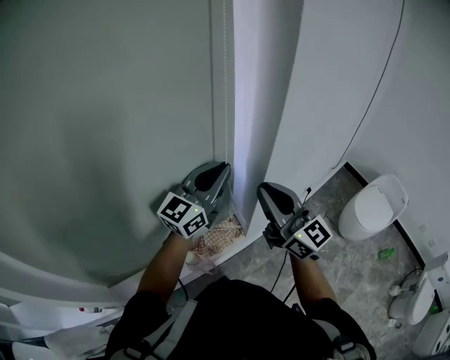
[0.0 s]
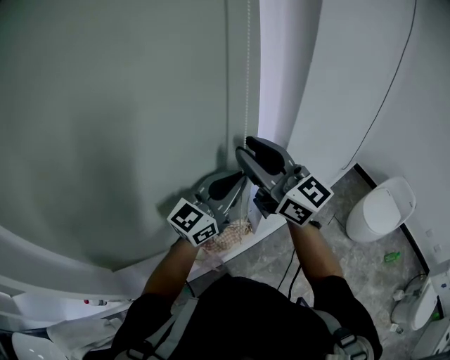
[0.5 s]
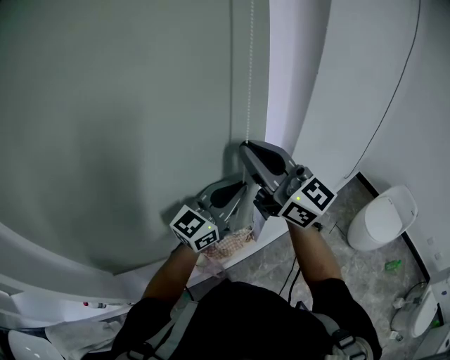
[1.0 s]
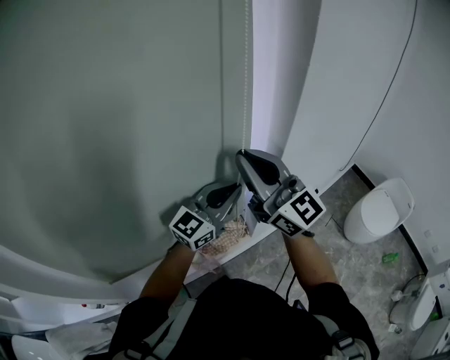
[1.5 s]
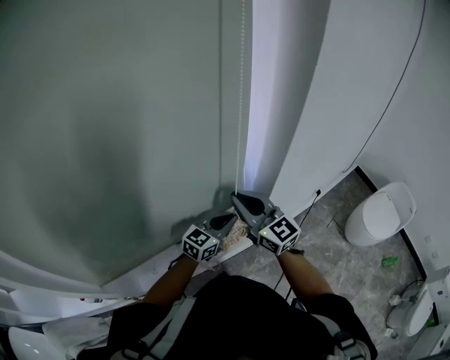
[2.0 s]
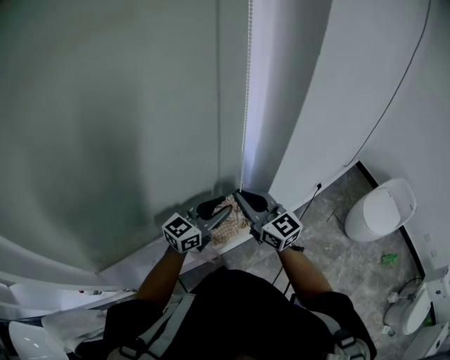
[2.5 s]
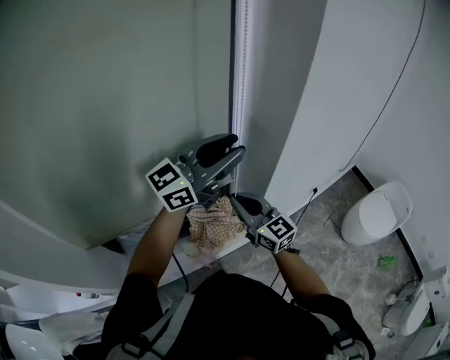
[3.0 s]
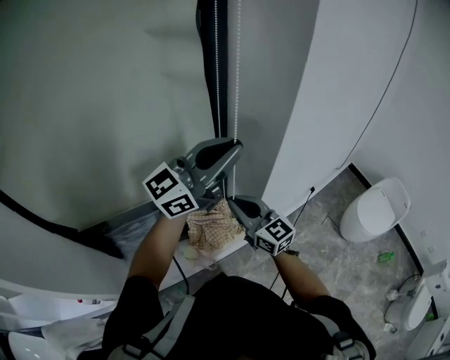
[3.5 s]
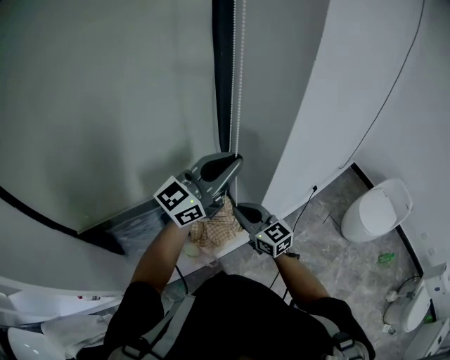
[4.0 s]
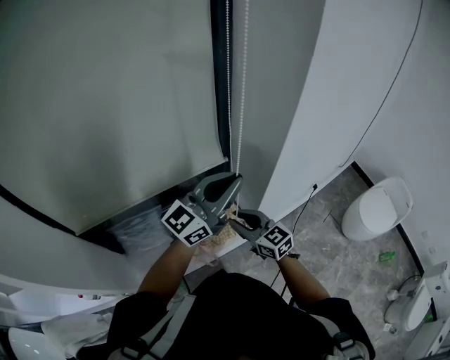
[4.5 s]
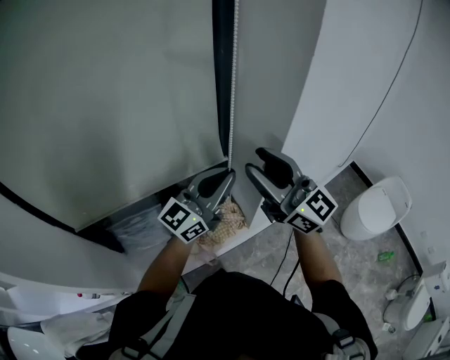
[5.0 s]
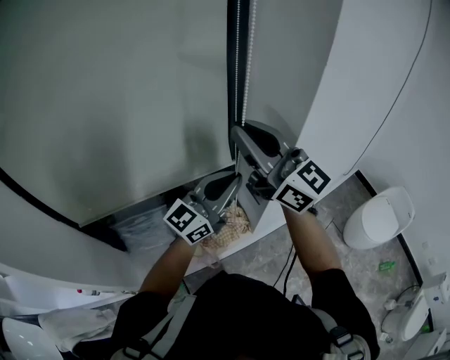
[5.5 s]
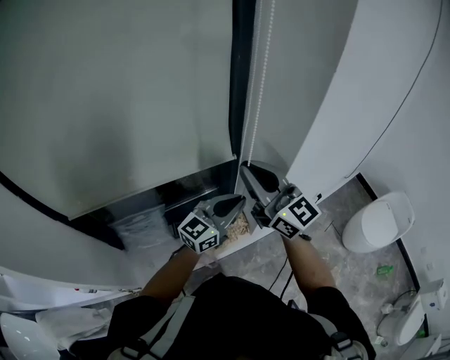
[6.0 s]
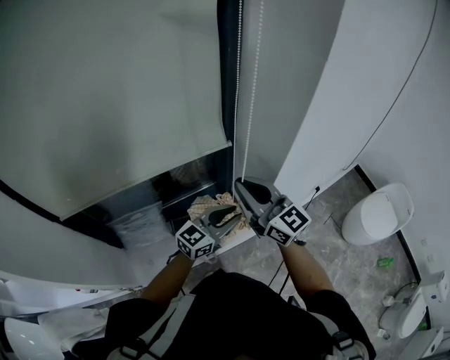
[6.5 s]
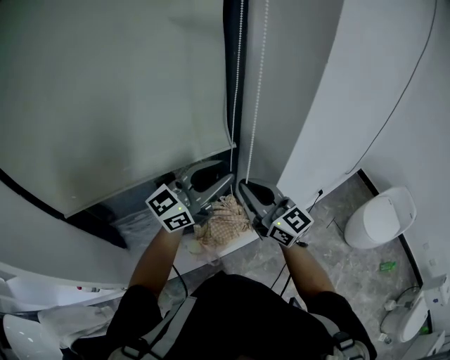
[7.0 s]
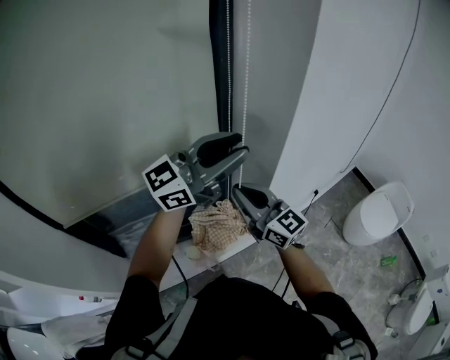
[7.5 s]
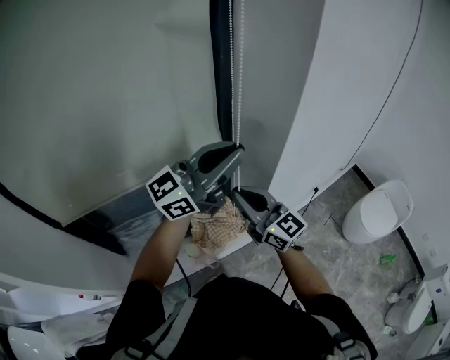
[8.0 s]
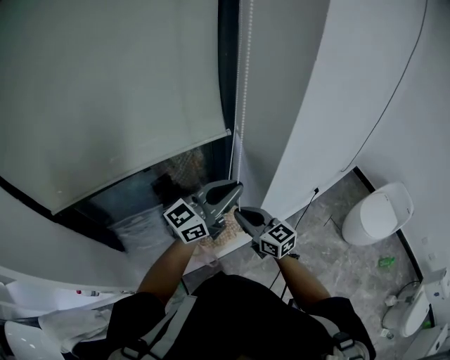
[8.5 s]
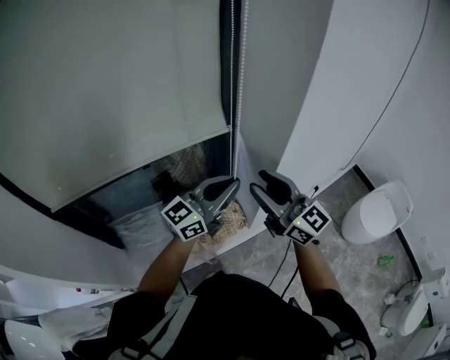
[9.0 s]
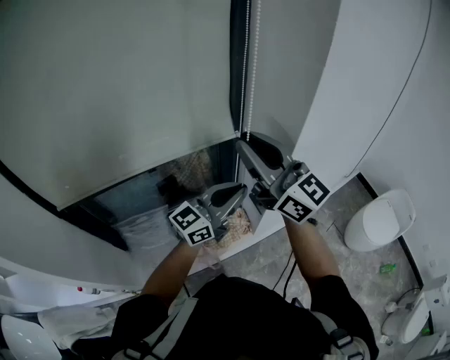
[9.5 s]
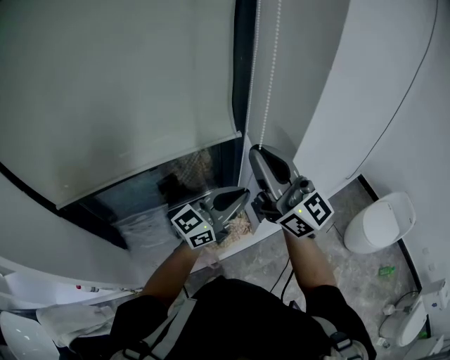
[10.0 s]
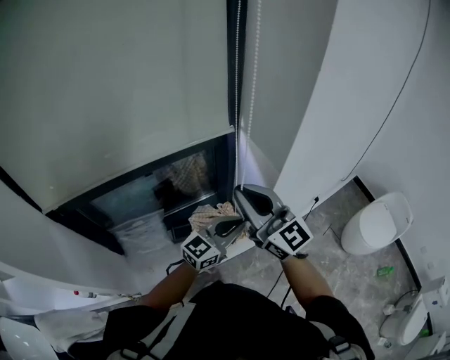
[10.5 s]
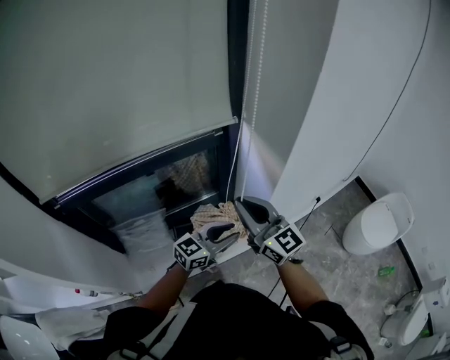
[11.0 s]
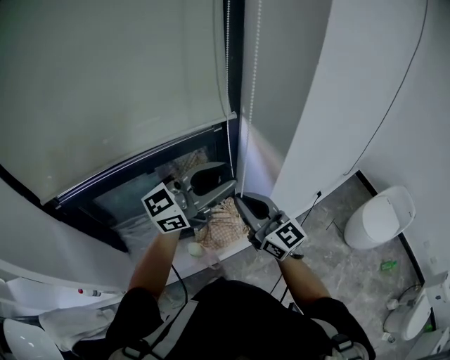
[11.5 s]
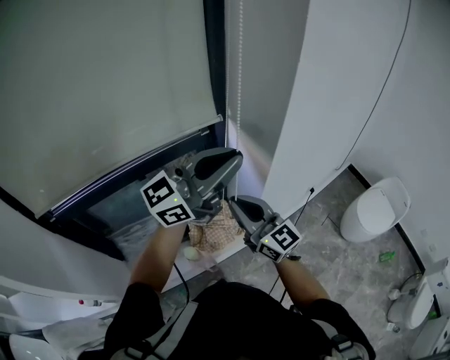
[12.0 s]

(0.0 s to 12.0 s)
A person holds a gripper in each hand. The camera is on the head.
0.0 s - 2.0 s: The right gripper heads downward and to the left, covering some 15 cm, and opens and closes again, while the left gripper heads downward, covering roughly 25 cm, and swivels about 30 degrees.
2.0 s - 4.0 s: The right gripper heads downward, covering about 10 cm, while the left gripper is displaced upward by about 25 cm, angles its fingers upward, by about 30 degrees, and opens and closes again.
4.0 s - 6.0 s: The left gripper is displaced downward by approximately 15 cm; the right gripper heads upward, covering some 20 cm, changes its angle by some 20 degrees, and opens and closes again.
6.0 s - 8.0 s: The right gripper shifts roughly 10 cm downward, while the left gripper shifts about 20 cm upward, swivels about 20 degrees, and opens, then closes again.
8.0 s - 10.0 s: The left gripper shifts some 15 cm downward. Meanwhile the right gripper moves upward, some 15 cm, and opens, then closes again.
10.0 s - 12.0 s: The left gripper moves upward, about 15 cm, and opens, then closes once more, while the right gripper heads downward, covering some 15 cm.

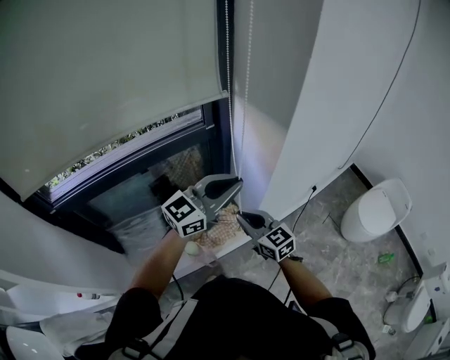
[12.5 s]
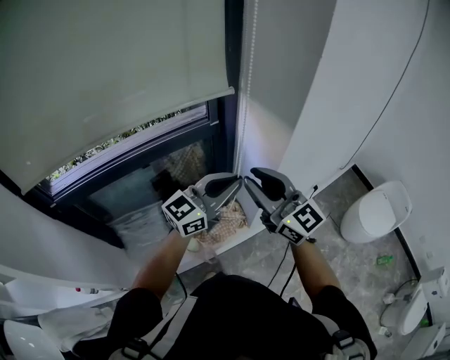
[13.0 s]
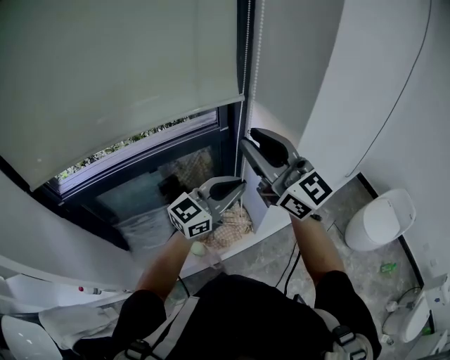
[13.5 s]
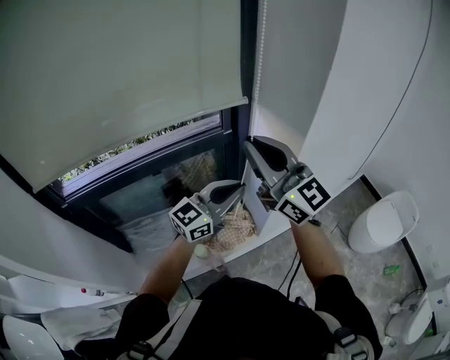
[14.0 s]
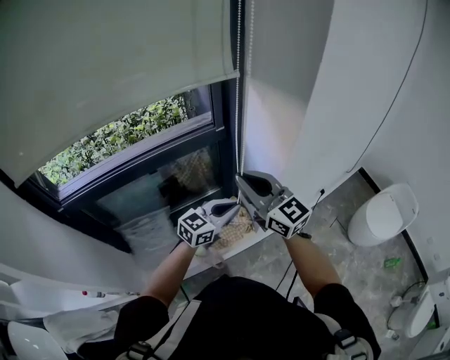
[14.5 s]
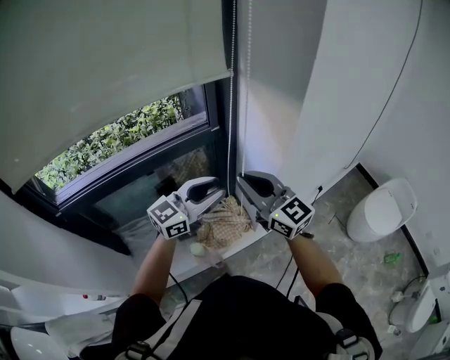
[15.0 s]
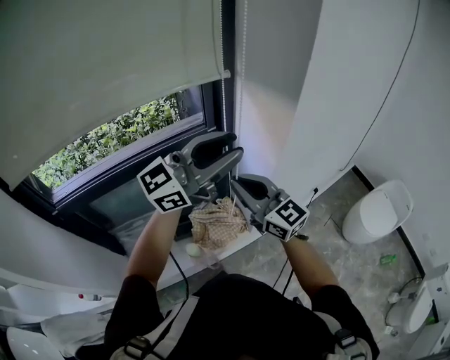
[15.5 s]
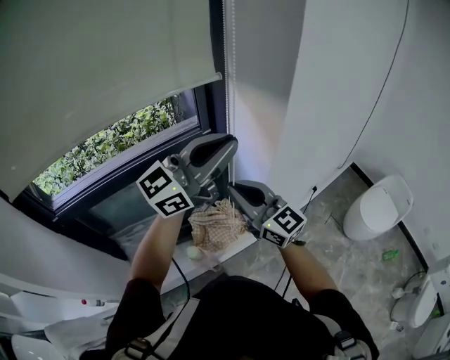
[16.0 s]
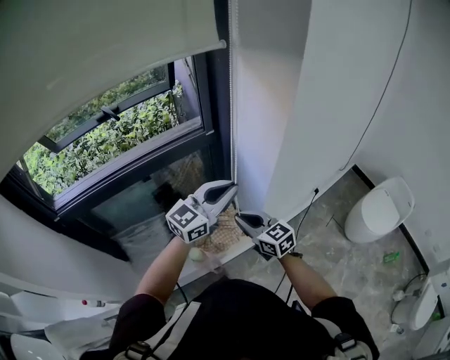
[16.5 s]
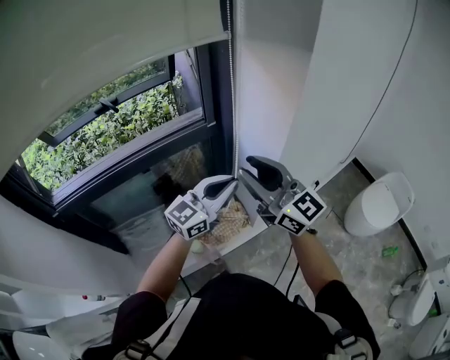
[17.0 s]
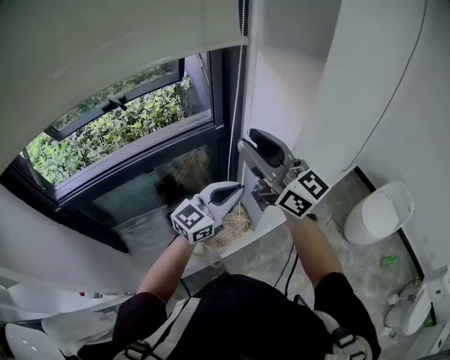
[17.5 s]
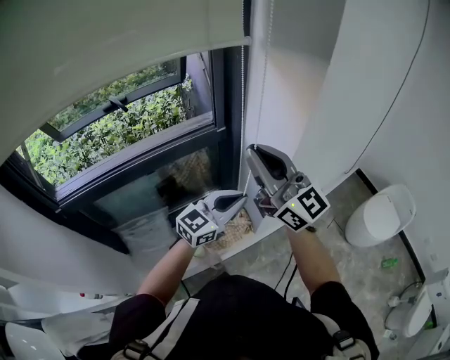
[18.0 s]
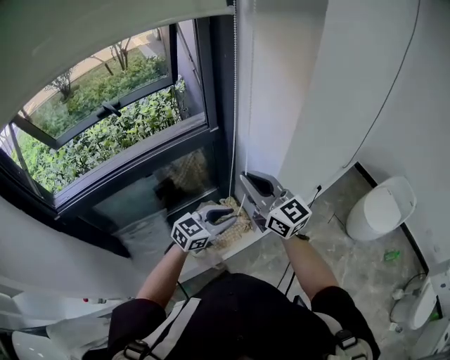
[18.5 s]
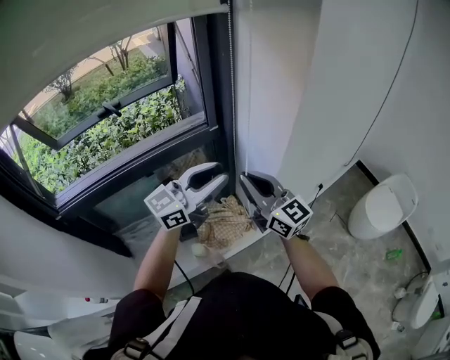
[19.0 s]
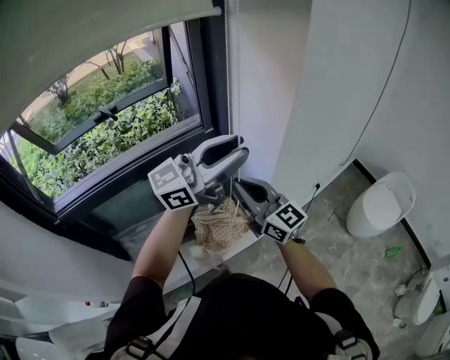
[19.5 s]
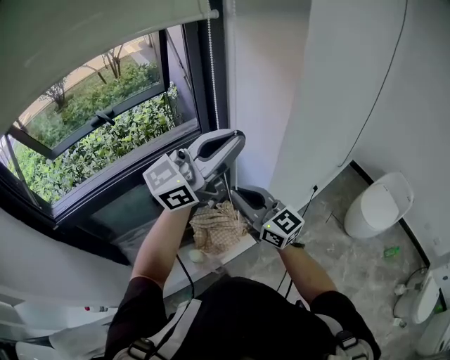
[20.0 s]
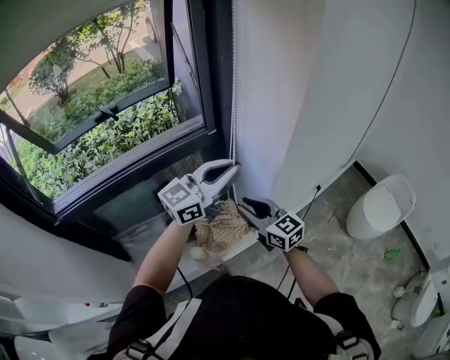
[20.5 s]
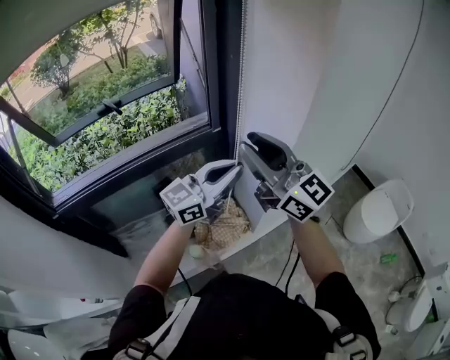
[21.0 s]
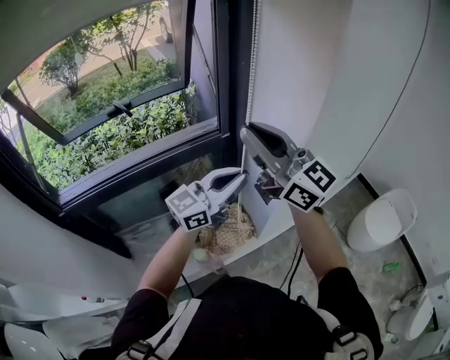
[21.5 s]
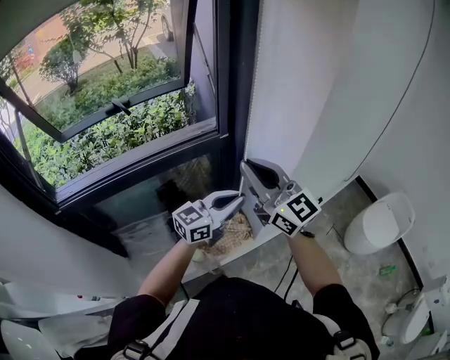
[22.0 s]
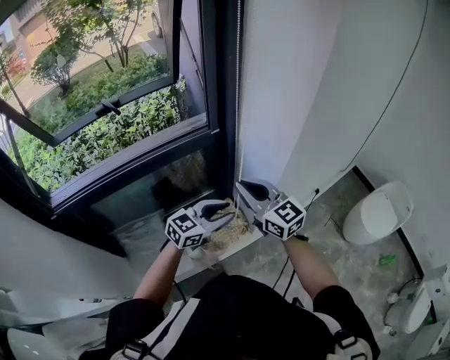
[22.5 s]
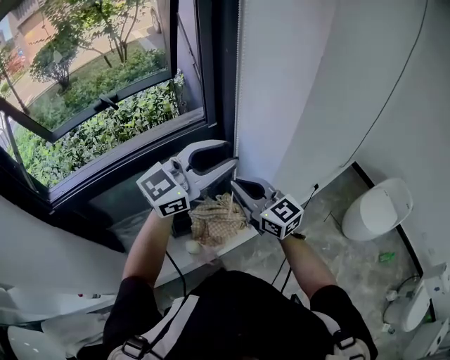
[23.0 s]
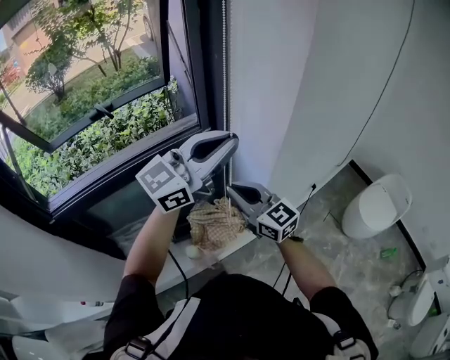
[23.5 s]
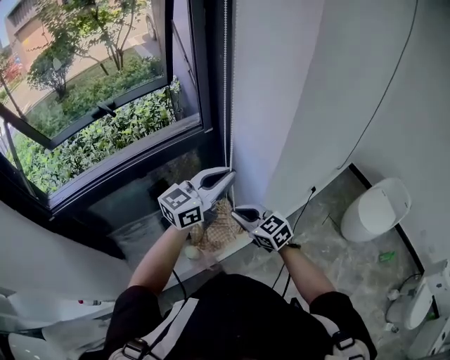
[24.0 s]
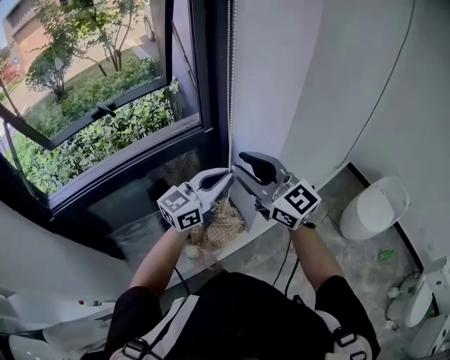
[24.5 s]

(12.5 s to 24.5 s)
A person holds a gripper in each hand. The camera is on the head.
12.5 s - 14.5 s: The right gripper travels upward by some 15 cm, changes its angle by some 20 degrees, and opens, then closes again. Meanwhile the left gripper goes about 15 cm downward.
14.5 s - 16.5 s: The right gripper shifts approximately 20 cm downward, and swivels approximately 30 degrees. The left gripper travels upward by approximately 10 cm, and opens, then closes once more.
16.5 s - 18.5 s: The left gripper heads downward, covering some 15 cm, and changes its angle by roughly 20 degrees. Meanwhile the right gripper shifts approximately 15 cm upward, changes its angle by roughly 30 degrees, and opens, then closes again.
18.5 s - 20.5 s: The right gripper heads downward, covering about 10 cm, and opens, while the left gripper moves upward, approximately 20 cm, and swivels some 30 degrees.
20.5 s - 22.5 s: The right gripper travels upward and back again, approximately 30 cm each way, and closes; the left gripper moves downward, roughly 20 cm, rotates some 20 degrees, and opens up.
22.5 s - 24.5 s: The two grippers go approximately 15 cm upward. The left gripper turns by about 20 degrees, and closes. Meanwhile the right gripper opens its fingers.

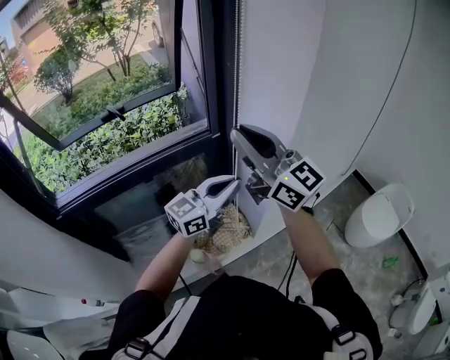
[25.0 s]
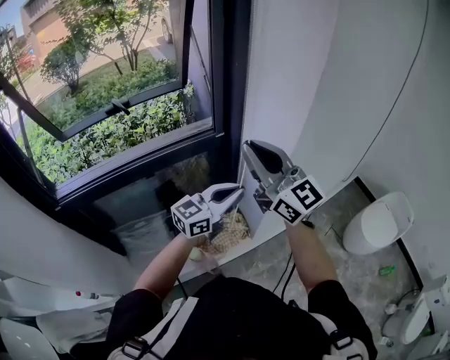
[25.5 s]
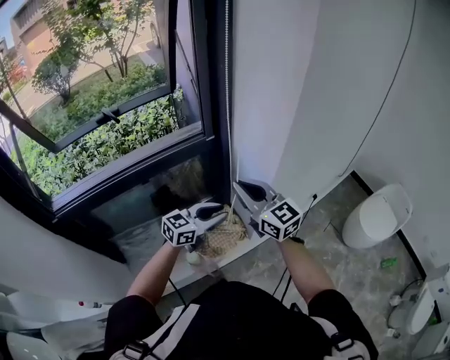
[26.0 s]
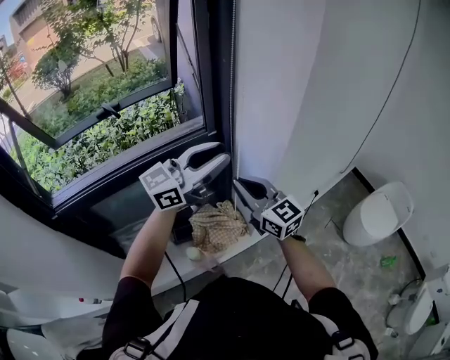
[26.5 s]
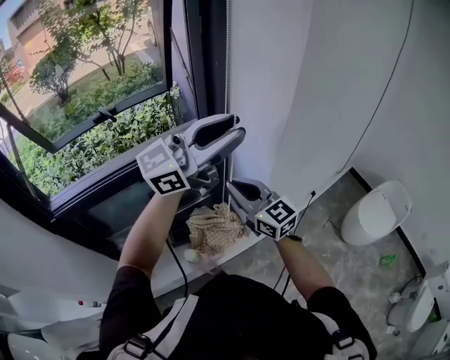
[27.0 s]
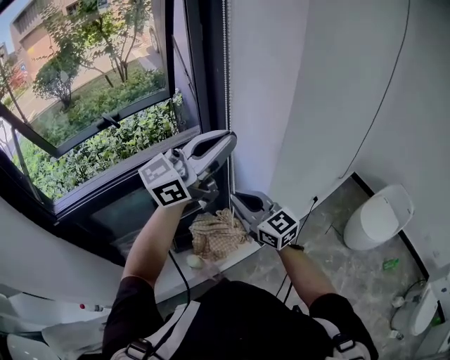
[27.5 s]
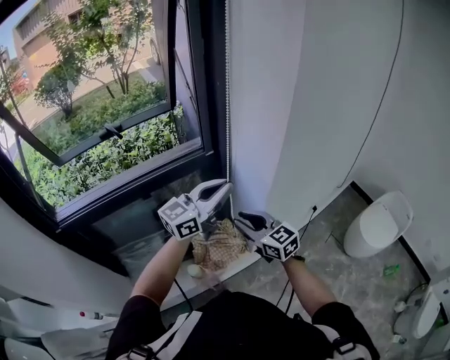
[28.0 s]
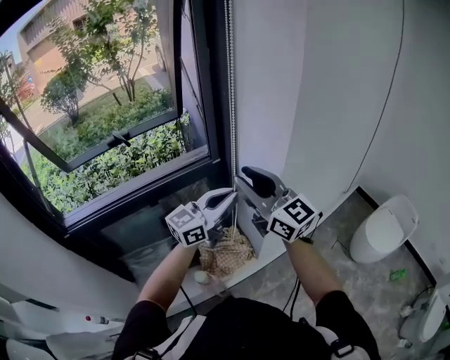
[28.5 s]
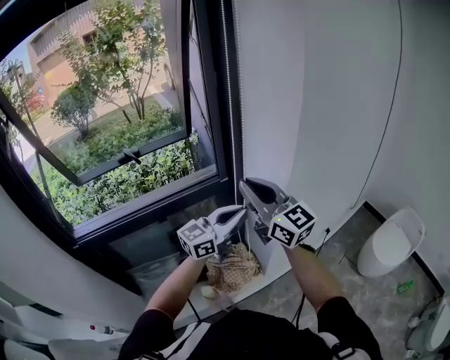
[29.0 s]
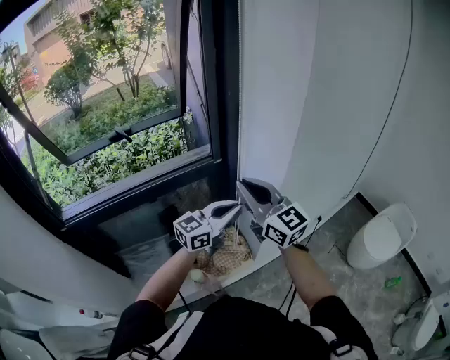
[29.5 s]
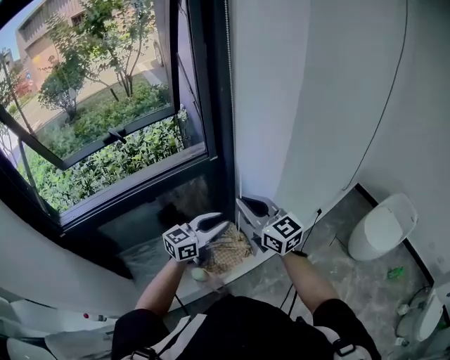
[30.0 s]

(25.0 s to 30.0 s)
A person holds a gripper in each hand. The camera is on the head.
25.0 s - 27.5 s: The left gripper goes about 15 cm upward, and opens and closes again; the right gripper moves downward, approximately 20 cm, and changes its angle by about 20 degrees.
27.5 s - 30.0 s: The left gripper travels downward by about 30 cm, swivels about 30 degrees, and opens up, while the right gripper swings up and down, some 25 cm each way, with 2 reversals, and opens, then closes again.
